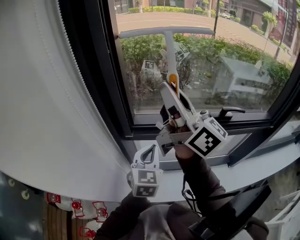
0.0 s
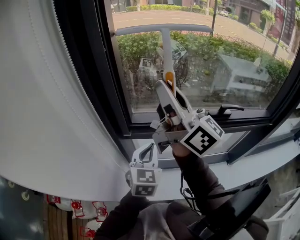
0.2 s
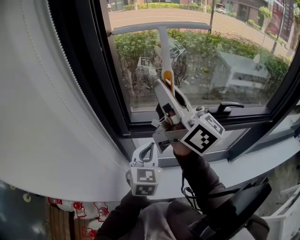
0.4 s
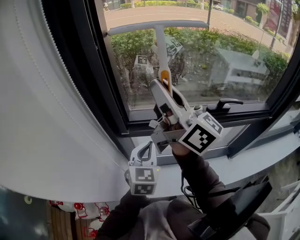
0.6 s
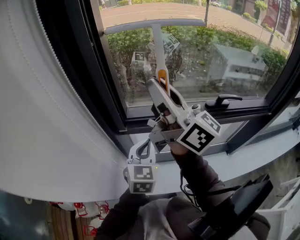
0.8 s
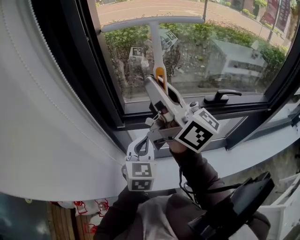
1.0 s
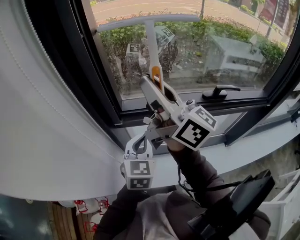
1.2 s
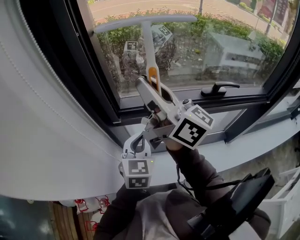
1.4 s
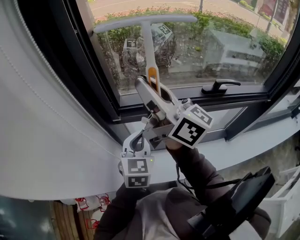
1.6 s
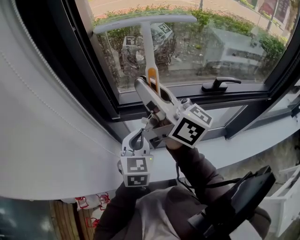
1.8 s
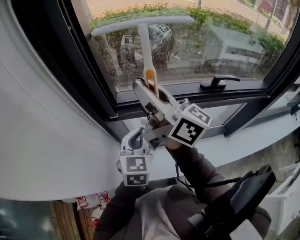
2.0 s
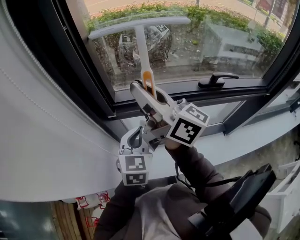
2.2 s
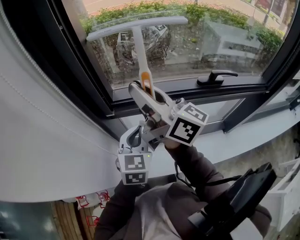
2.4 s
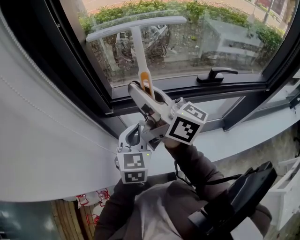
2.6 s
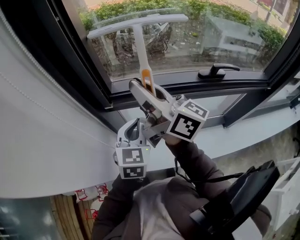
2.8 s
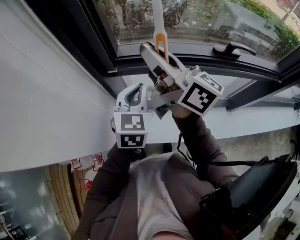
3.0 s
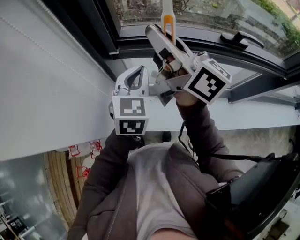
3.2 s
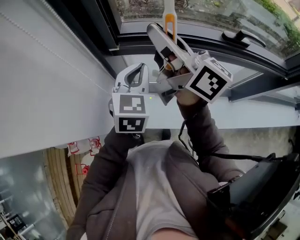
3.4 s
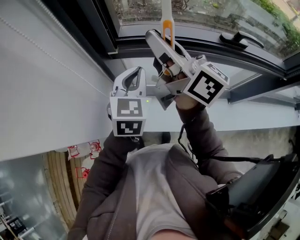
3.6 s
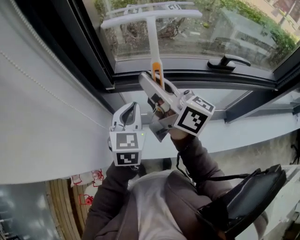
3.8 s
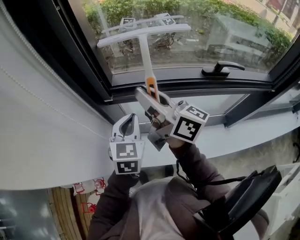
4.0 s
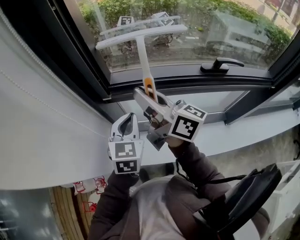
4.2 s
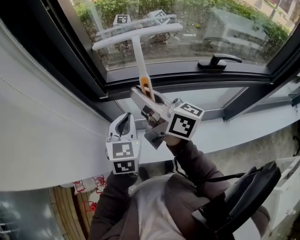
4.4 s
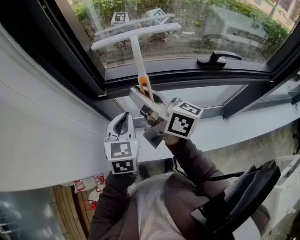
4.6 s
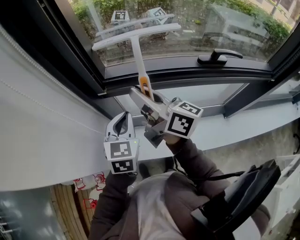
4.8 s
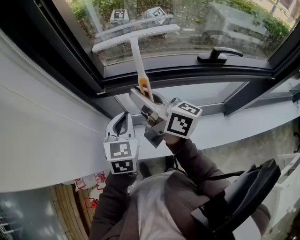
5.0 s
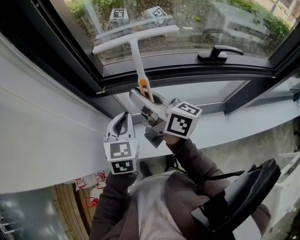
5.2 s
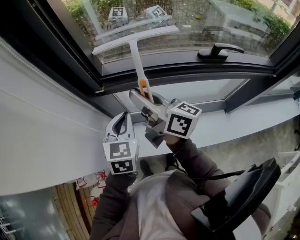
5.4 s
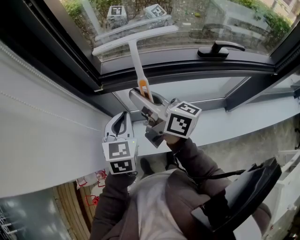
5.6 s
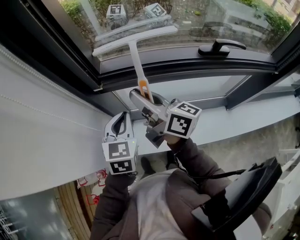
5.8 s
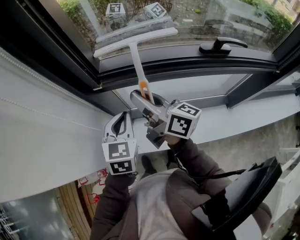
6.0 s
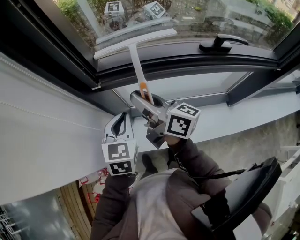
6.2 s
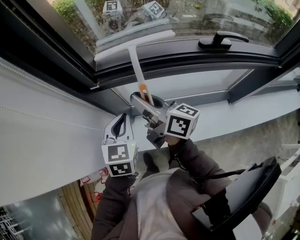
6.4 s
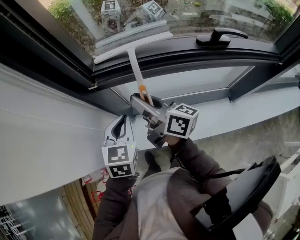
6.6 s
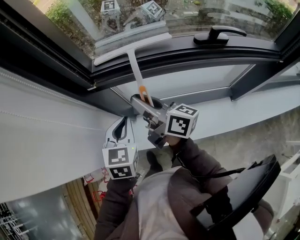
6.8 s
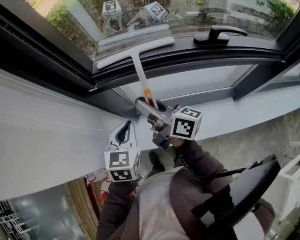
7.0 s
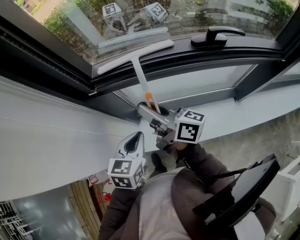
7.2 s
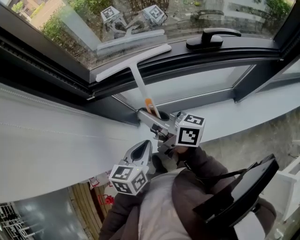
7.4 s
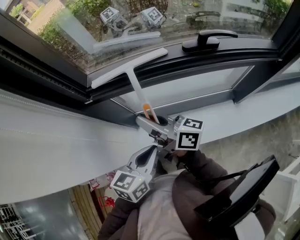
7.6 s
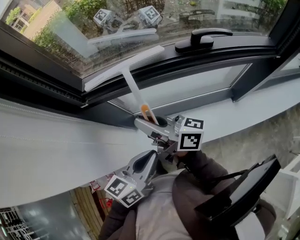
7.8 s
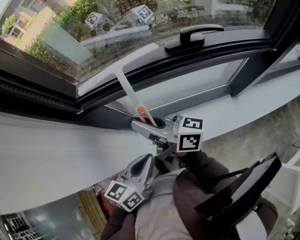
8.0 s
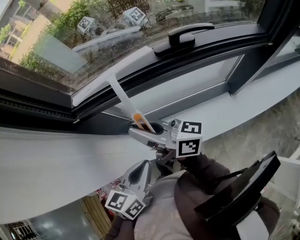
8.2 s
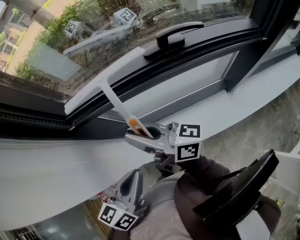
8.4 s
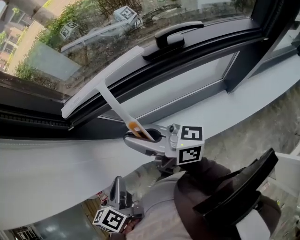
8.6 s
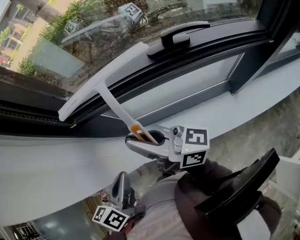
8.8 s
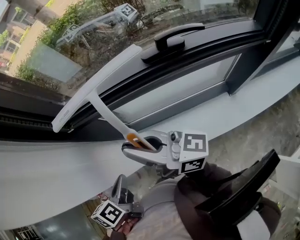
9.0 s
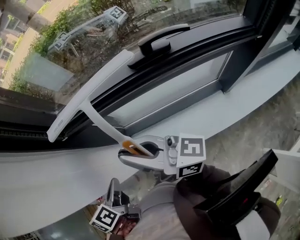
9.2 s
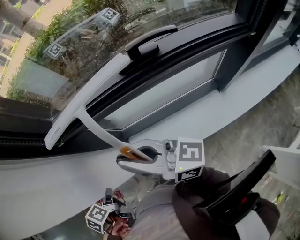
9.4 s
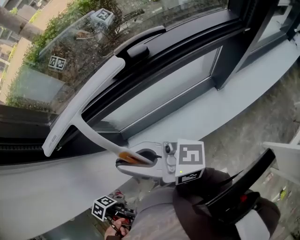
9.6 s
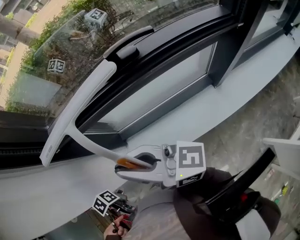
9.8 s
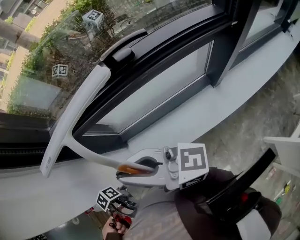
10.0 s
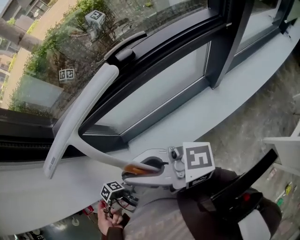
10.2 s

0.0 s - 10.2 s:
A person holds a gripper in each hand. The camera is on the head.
0.0 s - 1.4 s: There are only small adjustments of the grippers.
1.4 s - 3.0 s: The right gripper is displaced downward by roughly 10 cm.
3.0 s - 4.4 s: The right gripper is displaced downward by some 5 cm.
4.4 s - 5.8 s: The right gripper shifts some 5 cm downward.
5.8 s - 7.2 s: The left gripper is displaced backward and downward by some 10 cm; the right gripper moves roughly 5 cm.
7.2 s - 8.8 s: The left gripper shifts approximately 10 cm backward and upward, travels to the right and back again, some 10 cm each way, and rotates about 30 degrees. Meanwhile the right gripper heads to the right, backward and upward, covering roughly 10 cm.
8.8 s - 10.2 s: The right gripper shifts by about 10 cm, while the left gripper is displaced downward by approximately 25 cm, and points its fingers approximately 50 degrees further downward.

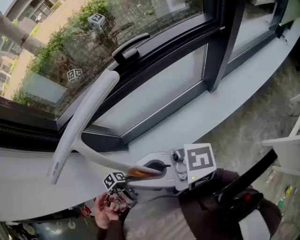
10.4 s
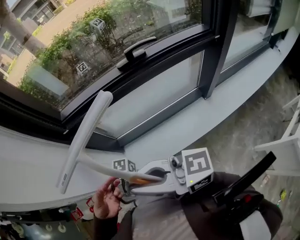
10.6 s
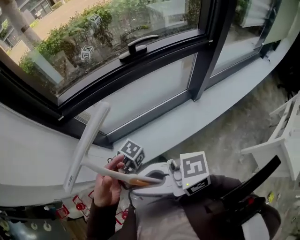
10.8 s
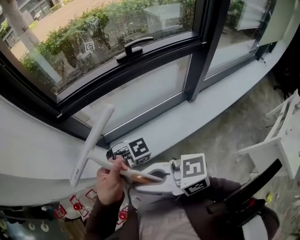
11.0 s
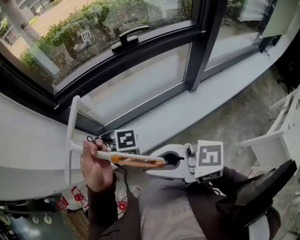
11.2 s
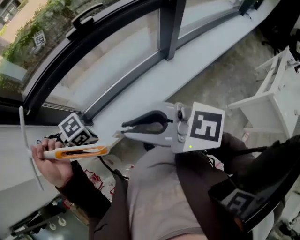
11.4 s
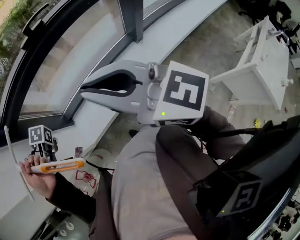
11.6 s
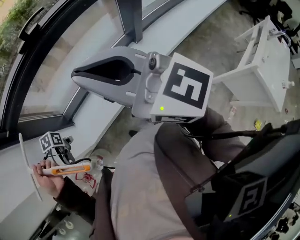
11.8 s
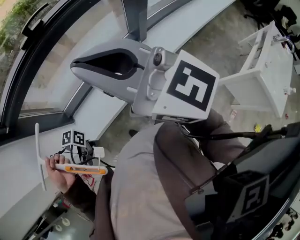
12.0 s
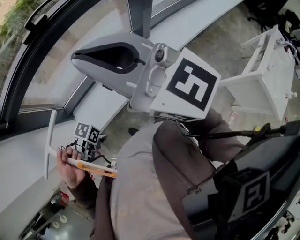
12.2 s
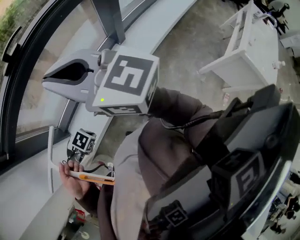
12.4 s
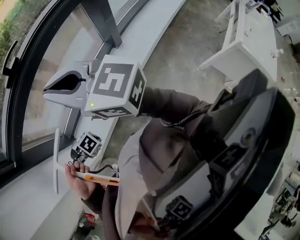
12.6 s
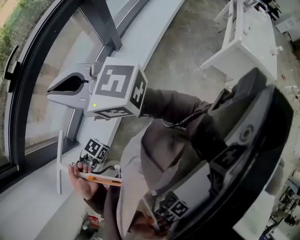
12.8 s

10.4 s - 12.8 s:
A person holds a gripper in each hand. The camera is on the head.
10.4 s - 11.6 s: The left gripper shifts roughly 10 cm upward, and rolls clockwise, seen from behind, by roughly 60 degrees; the right gripper moves some 15 cm, and changes its angle by about 50 degrees.
11.6 s - 12.8 s: The left gripper ends up about 30 cm from where it was, and twists approximately 60 degrees clockwise, seen from behind, while the right gripper changes place by approximately 10 cm.

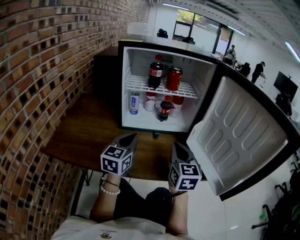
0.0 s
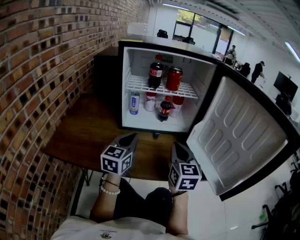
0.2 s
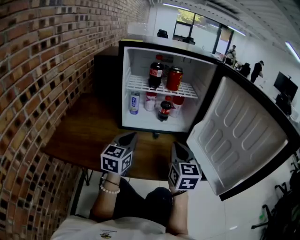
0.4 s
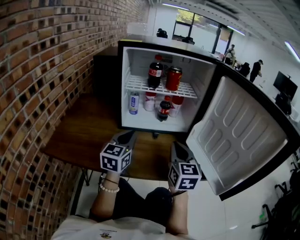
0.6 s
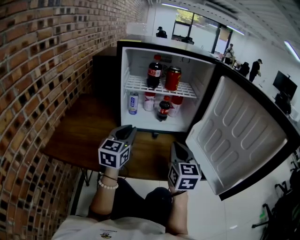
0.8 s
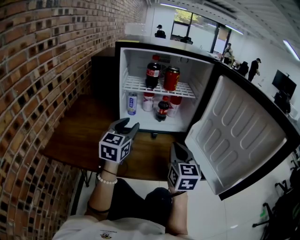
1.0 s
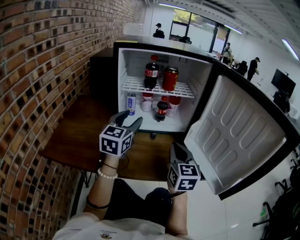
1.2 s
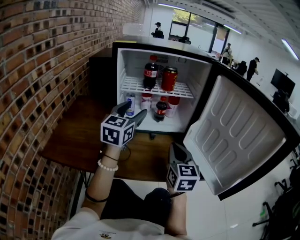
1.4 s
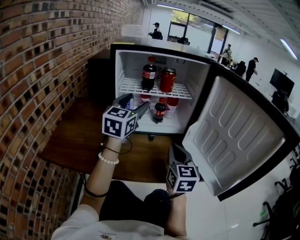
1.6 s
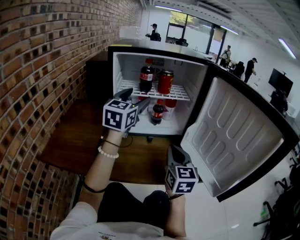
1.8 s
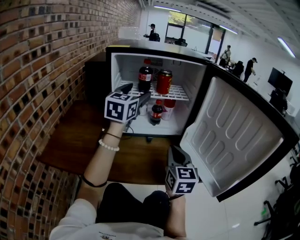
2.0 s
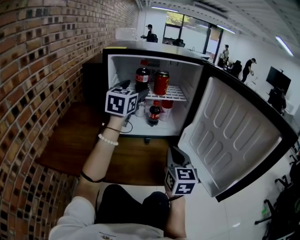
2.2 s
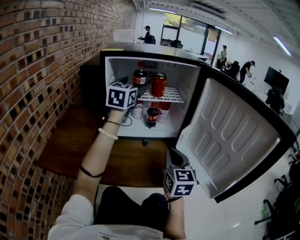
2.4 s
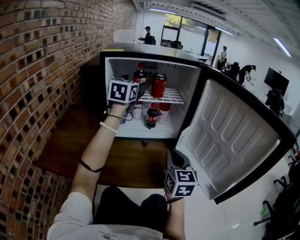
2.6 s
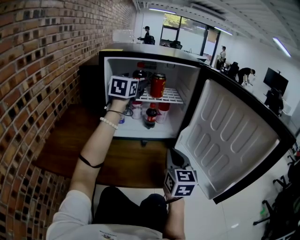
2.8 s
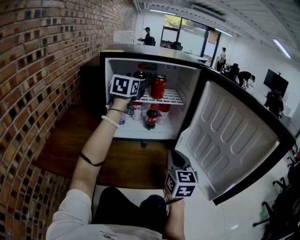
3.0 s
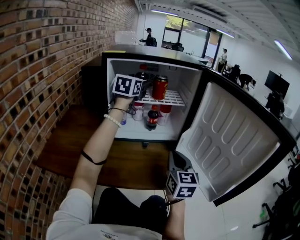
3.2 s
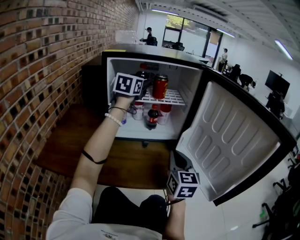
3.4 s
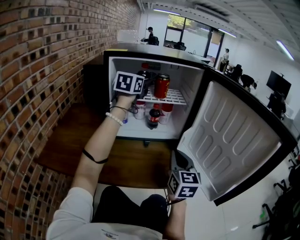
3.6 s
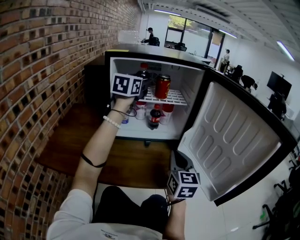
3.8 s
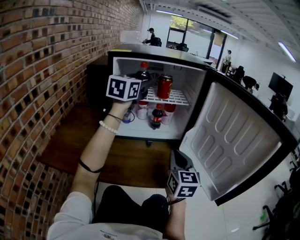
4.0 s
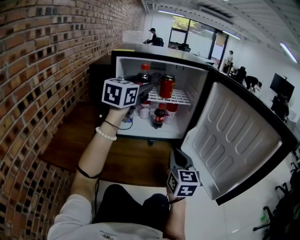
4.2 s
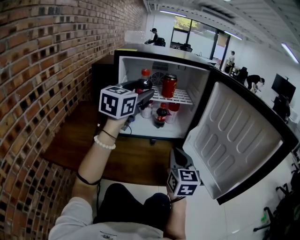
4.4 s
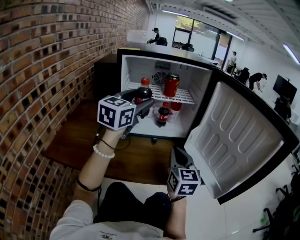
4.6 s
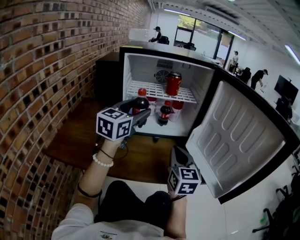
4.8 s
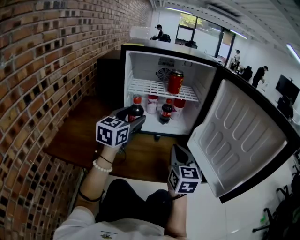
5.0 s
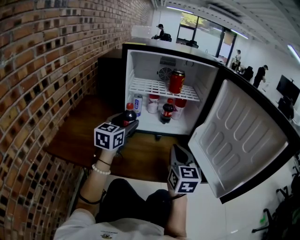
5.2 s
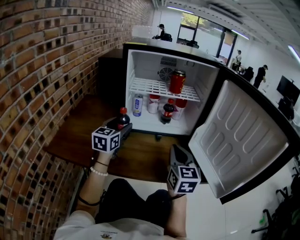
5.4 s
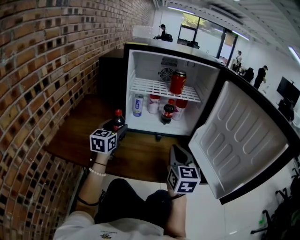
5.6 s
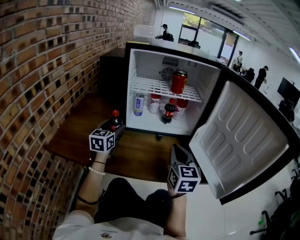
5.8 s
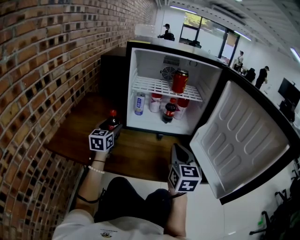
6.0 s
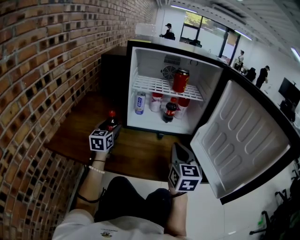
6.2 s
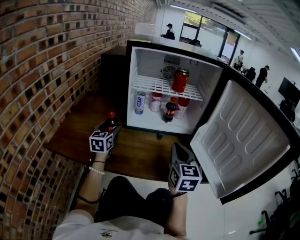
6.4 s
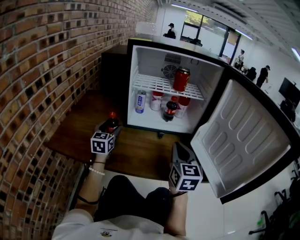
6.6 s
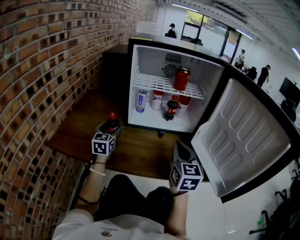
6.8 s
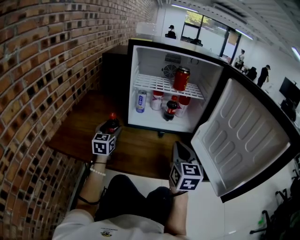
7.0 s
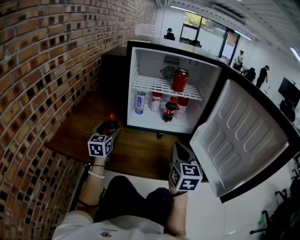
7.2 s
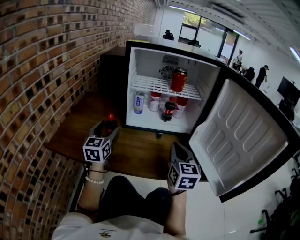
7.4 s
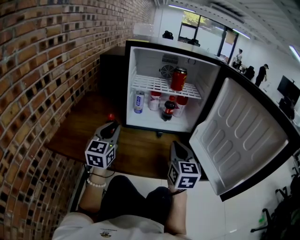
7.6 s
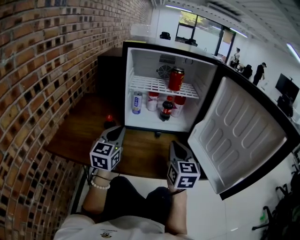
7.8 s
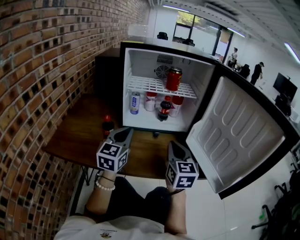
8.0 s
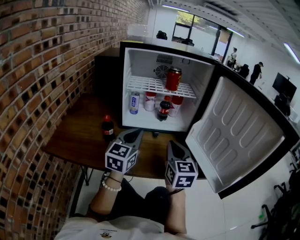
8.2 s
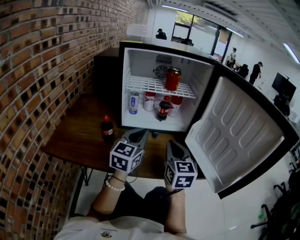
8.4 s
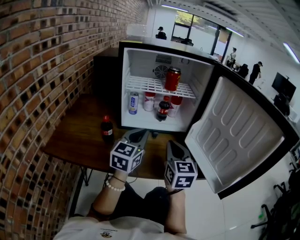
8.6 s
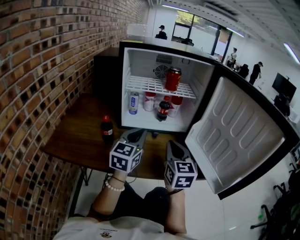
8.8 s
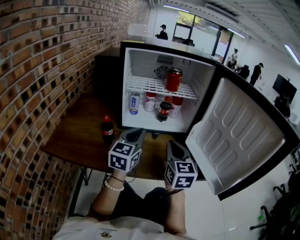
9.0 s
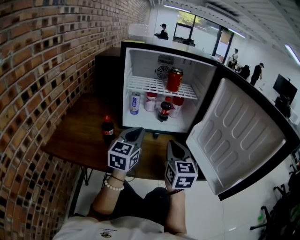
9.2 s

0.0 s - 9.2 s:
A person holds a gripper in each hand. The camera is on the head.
0.0 s - 1.6 s: The left gripper goes some 15 cm upward and forward, and opens.
1.6 s - 3.0 s: The left gripper moves forward and upward, approximately 15 cm.
3.0 s - 4.6 s: The left gripper shifts roughly 15 cm backward.
4.6 s - 6.2 s: The left gripper goes some 30 cm downward and to the left, and changes its angle by about 30 degrees.
6.2 s - 7.6 s: The left gripper heads backward and upward, covering some 15 cm, and closes.
7.6 s - 9.2 s: The left gripper travels to the right by roughly 10 cm.

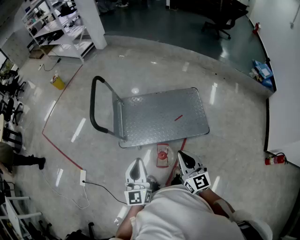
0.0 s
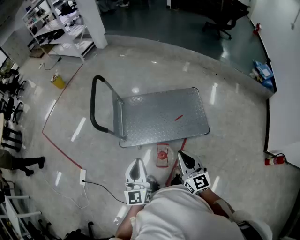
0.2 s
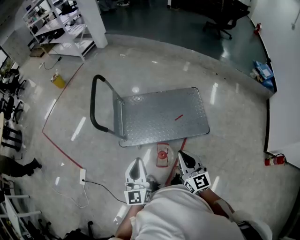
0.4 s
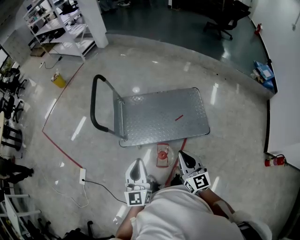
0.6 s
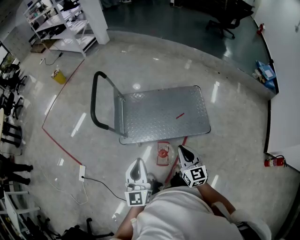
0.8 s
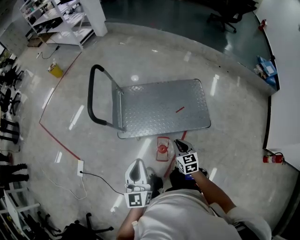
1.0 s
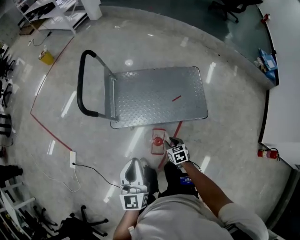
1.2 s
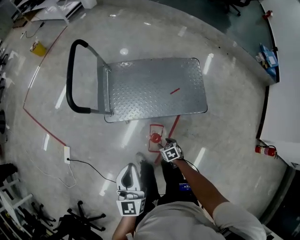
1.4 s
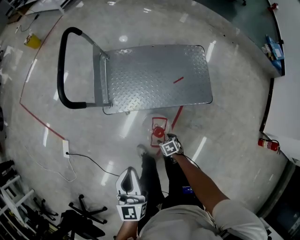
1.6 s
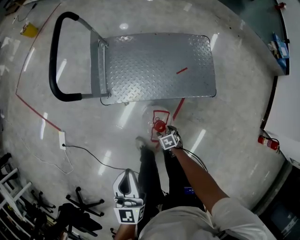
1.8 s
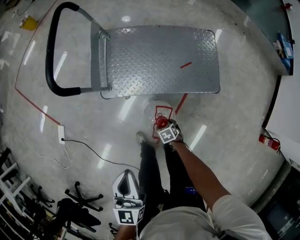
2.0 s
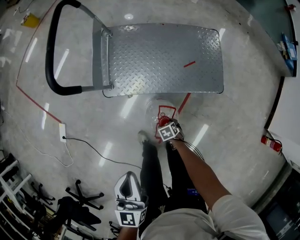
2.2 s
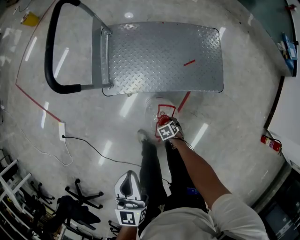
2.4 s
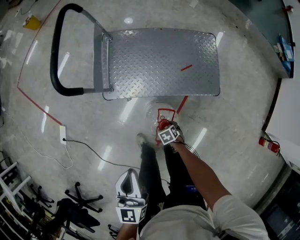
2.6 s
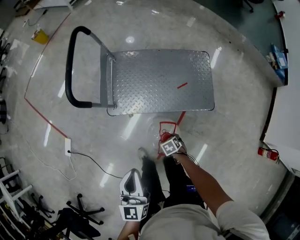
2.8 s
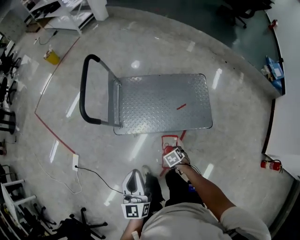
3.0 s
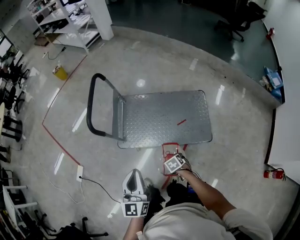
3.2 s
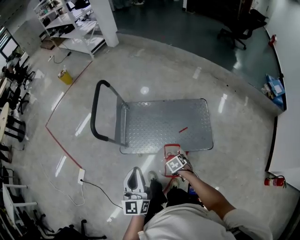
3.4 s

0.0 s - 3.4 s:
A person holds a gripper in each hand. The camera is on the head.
0.0 s - 1.6 s: The right gripper is displaced downward by roughly 50 cm, tips its fingers downward by about 70 degrees, and opens up. The left gripper heads downward, covering about 10 cm.
1.6 s - 3.4 s: The left gripper moves upward, some 10 cm; the right gripper goes roughly 20 cm upward.
